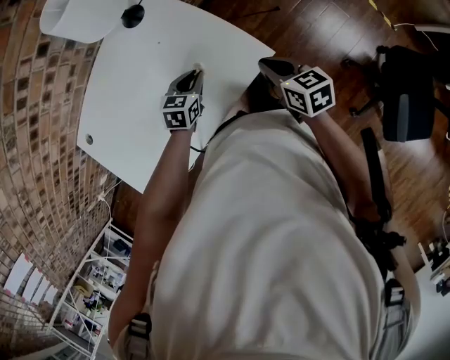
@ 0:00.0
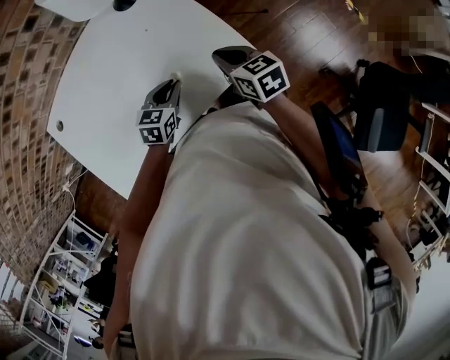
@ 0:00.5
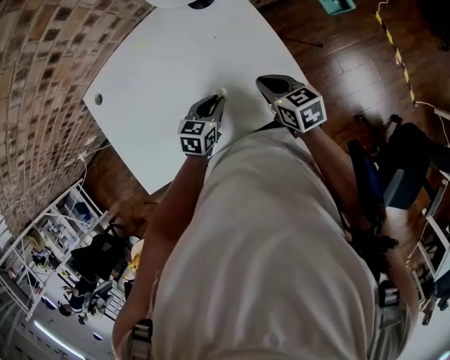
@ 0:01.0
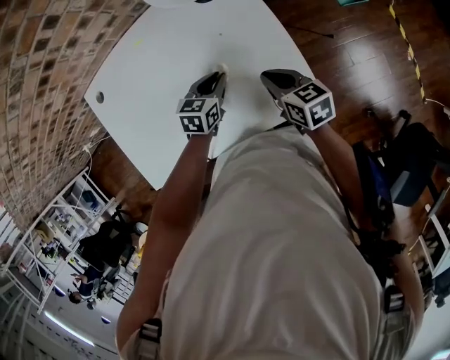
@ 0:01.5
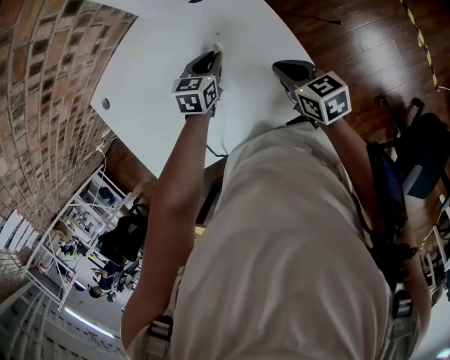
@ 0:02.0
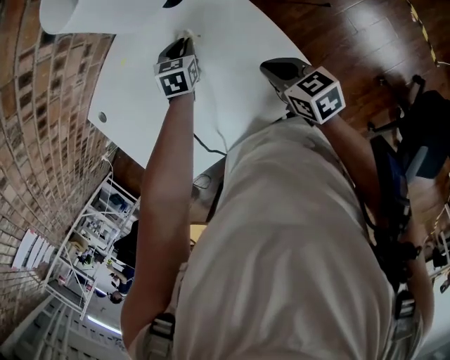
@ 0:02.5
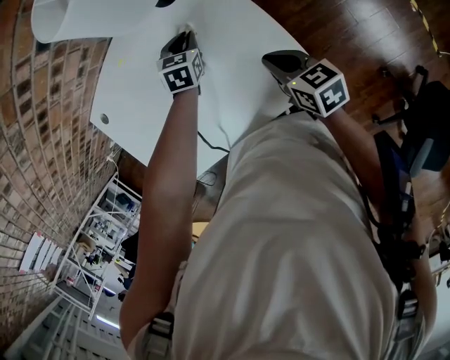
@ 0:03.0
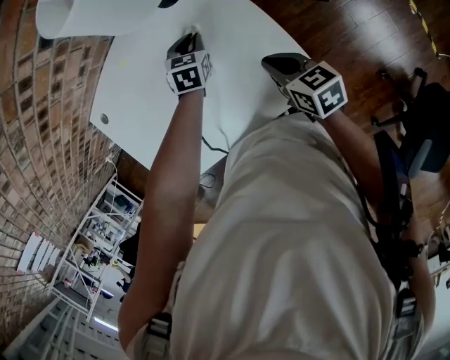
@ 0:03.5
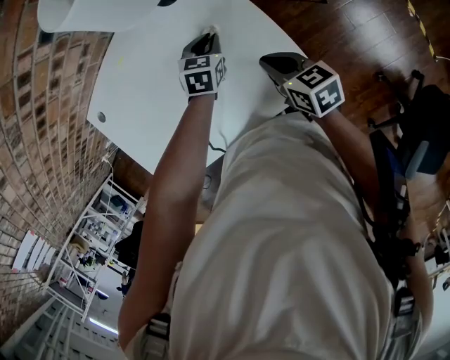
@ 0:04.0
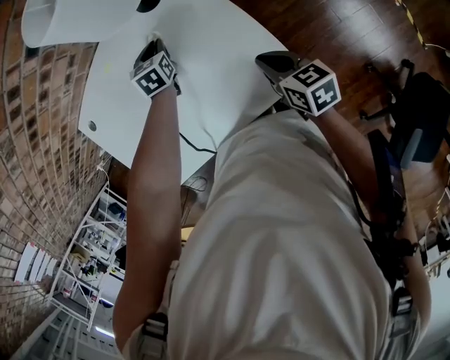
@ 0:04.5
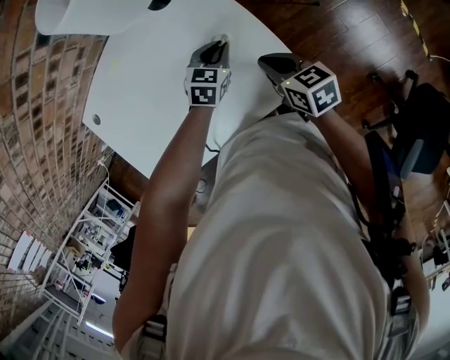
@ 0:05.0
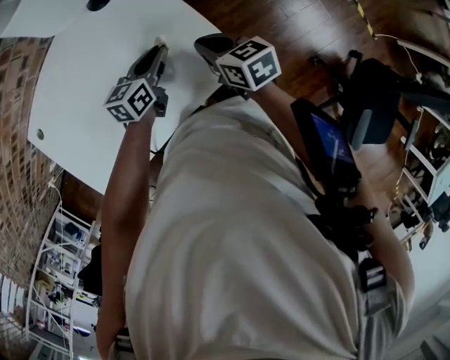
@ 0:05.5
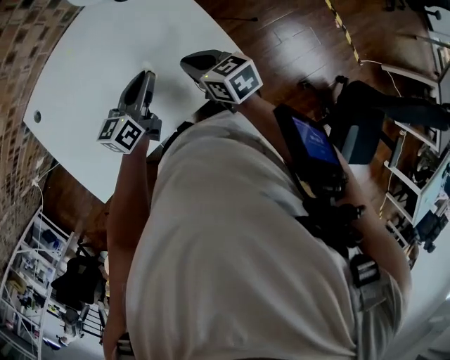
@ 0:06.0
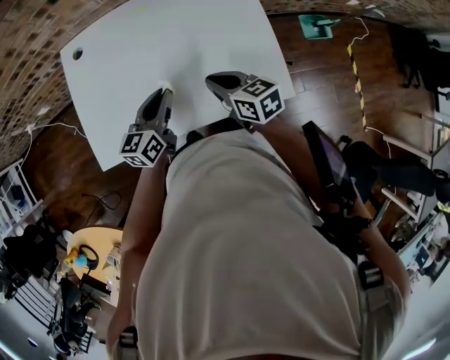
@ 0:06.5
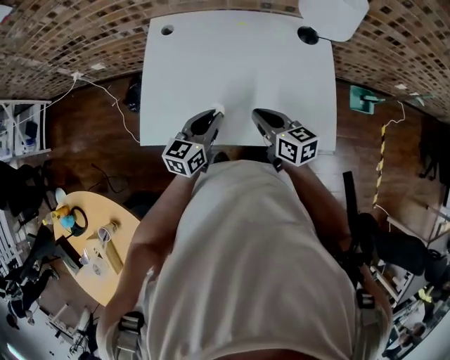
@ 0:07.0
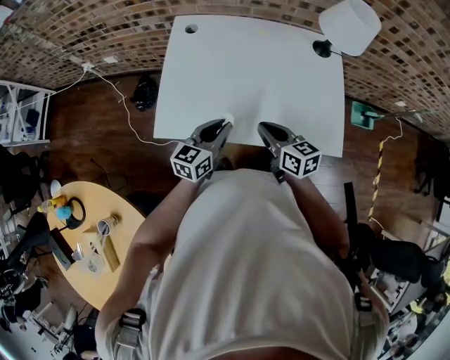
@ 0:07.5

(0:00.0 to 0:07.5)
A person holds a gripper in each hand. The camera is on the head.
0:00.0 - 0:02.0: Both grippers move forward and to the left, roughly 15 cm. The right gripper swivels approximately 20 degrees. Meanwhile the left gripper swivels approximately 20 degrees.
0:02.0 - 0:04.0: The left gripper travels to the right by roughly 5 cm.
0:04.0 - 0:05.5: The left gripper travels backward by about 10 cm, and turns by roughly 30 degrees.
0:05.5 - 0:07.5: The left gripper shifts by some 40 cm, and rotates some 40 degrees. The right gripper changes place by approximately 40 cm, and rotates some 30 degrees.

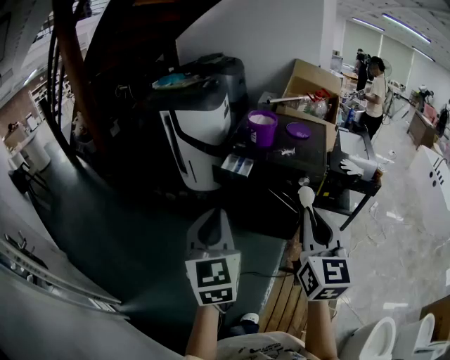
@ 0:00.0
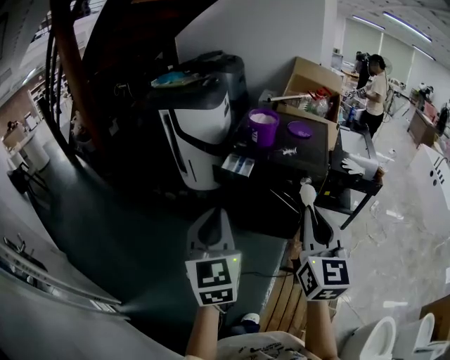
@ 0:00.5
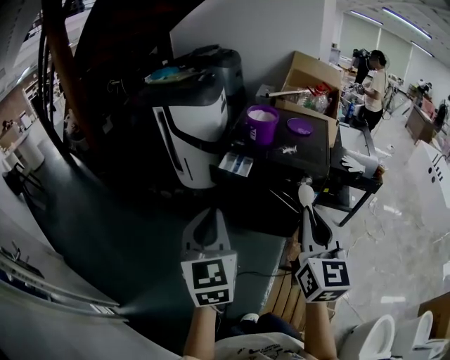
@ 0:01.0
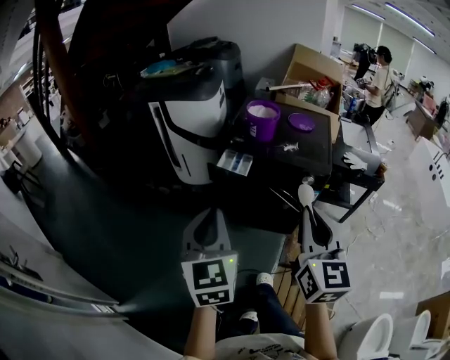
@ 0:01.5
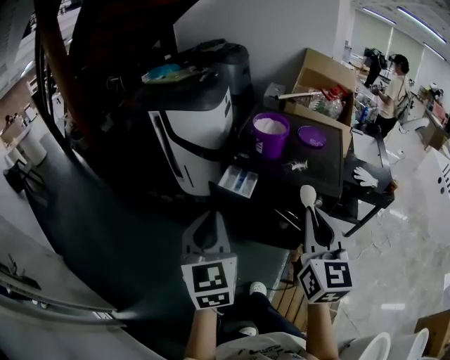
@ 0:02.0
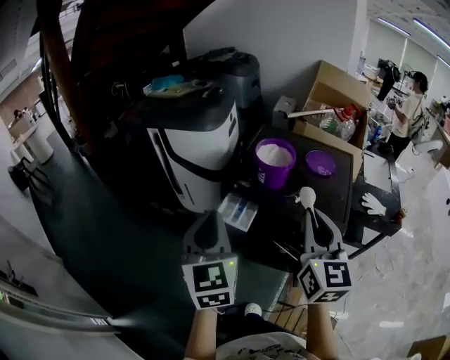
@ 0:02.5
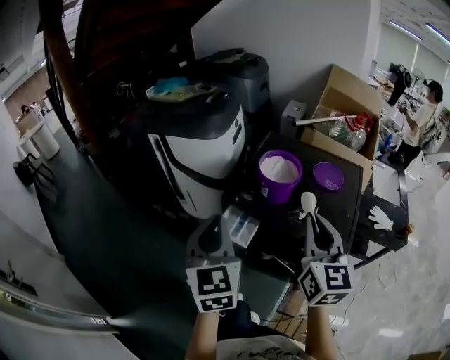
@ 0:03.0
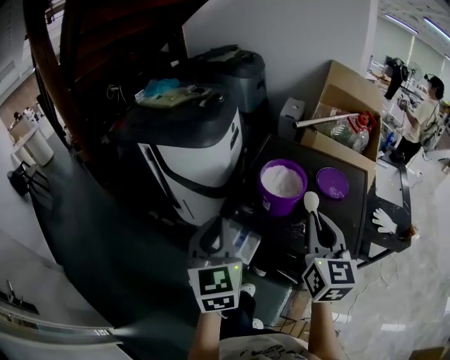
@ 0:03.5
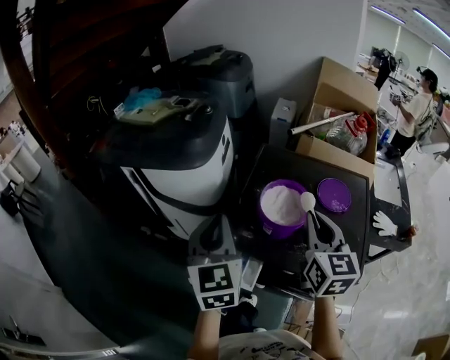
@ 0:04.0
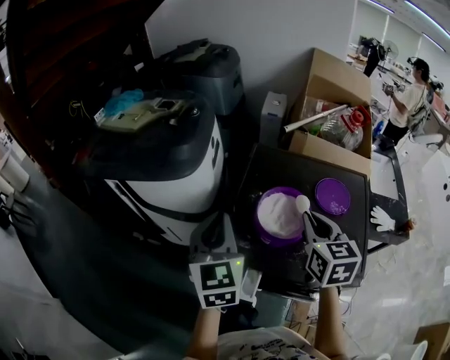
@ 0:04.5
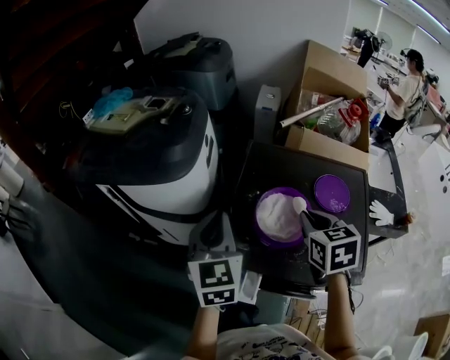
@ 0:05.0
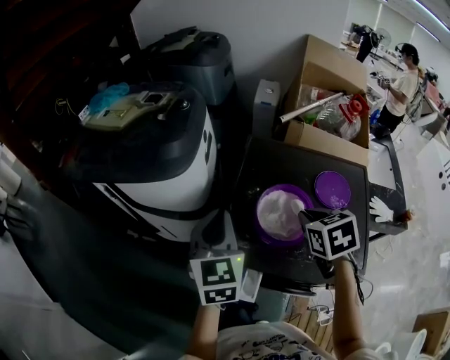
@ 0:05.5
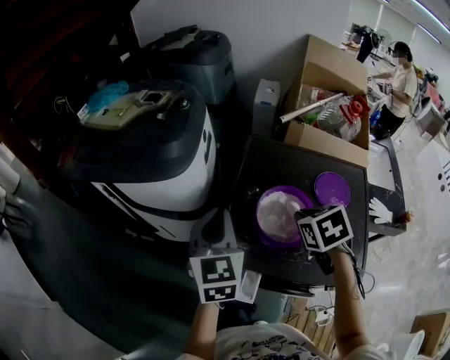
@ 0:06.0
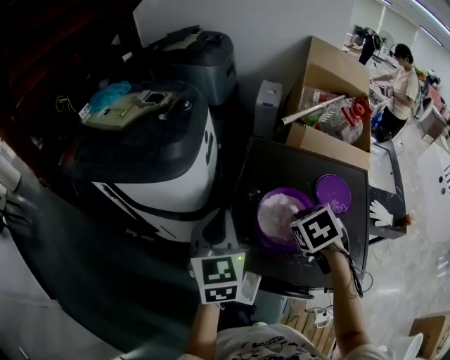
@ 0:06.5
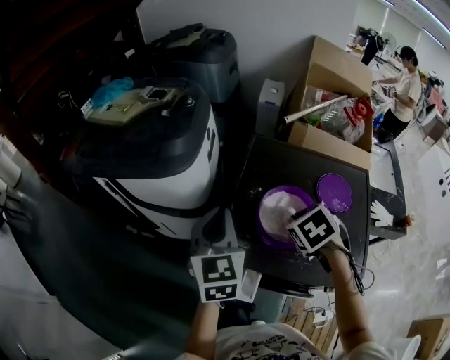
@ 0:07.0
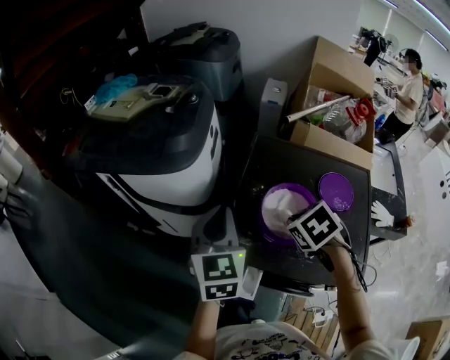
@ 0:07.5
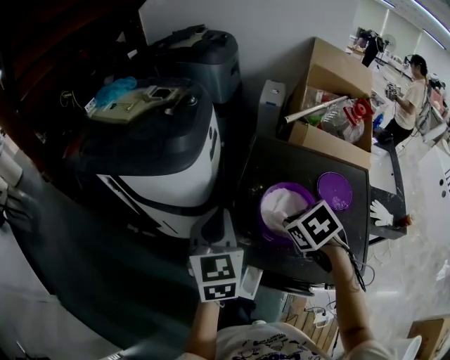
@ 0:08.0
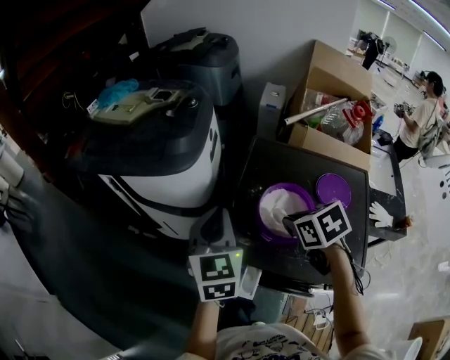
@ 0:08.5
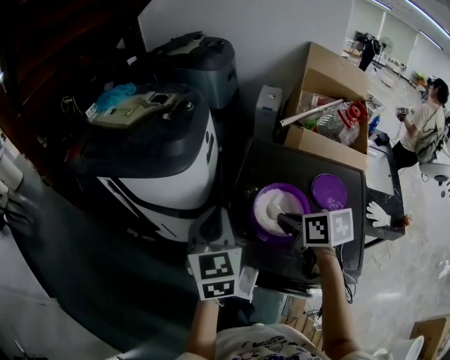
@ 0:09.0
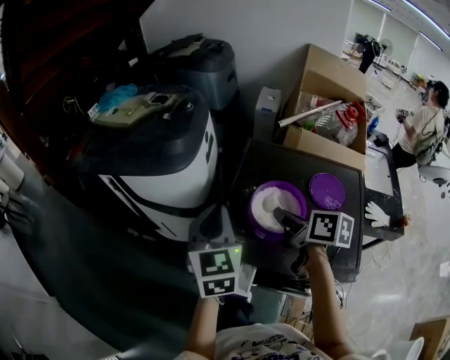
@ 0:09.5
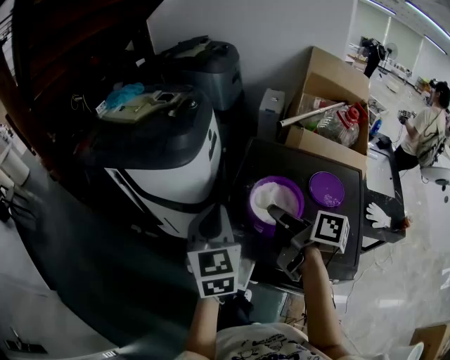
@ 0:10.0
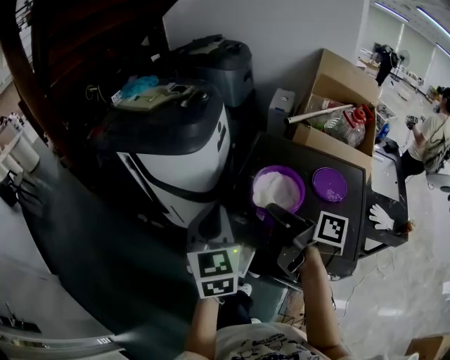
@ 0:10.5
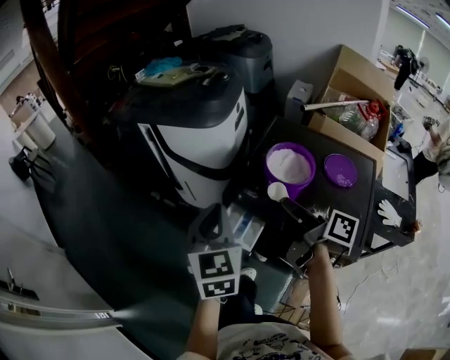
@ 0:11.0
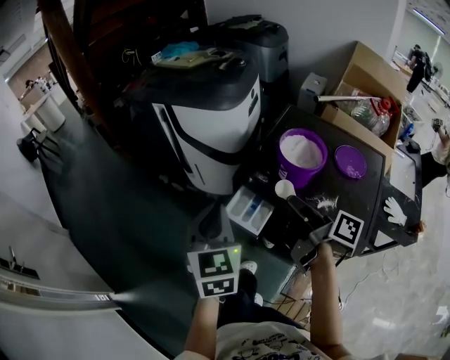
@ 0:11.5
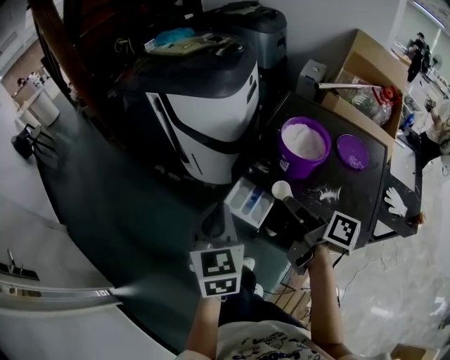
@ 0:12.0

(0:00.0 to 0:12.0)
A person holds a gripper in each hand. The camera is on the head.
0:00.0 - 0:02.0: Both grippers move forward, roughly 20 cm.
0:02.0 - 0:04.0: Both grippers travel together forward, roughly 40 cm.
0:04.0 - 0:06.0: The right gripper moves downward and forward, approximately 15 cm, and tilts its fingers approximately 50 degrees downward; the left gripper shifts some 10 cm forward and downward.
0:06.0 - 0:08.0: The right gripper shifts by roughly 5 cm.
0:08.0 - 0:10.0: The left gripper changes place by some 5 cm. Meanwhile the right gripper goes roughly 10 cm upward, and tips its fingers upward by roughly 50 degrees.
0:10.0 - 0:12.0: The left gripper is displaced backward and to the left by some 20 cm; the right gripper goes roughly 15 cm backward, to the left and downward.

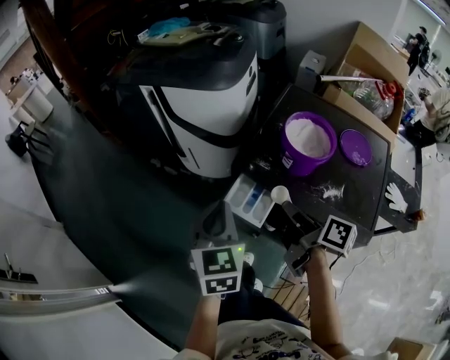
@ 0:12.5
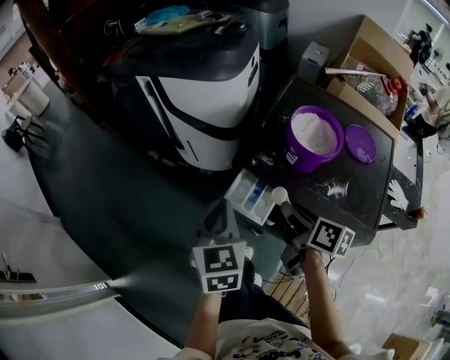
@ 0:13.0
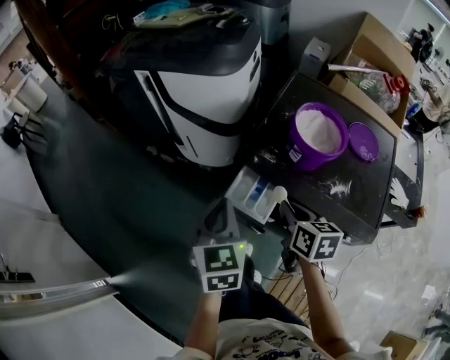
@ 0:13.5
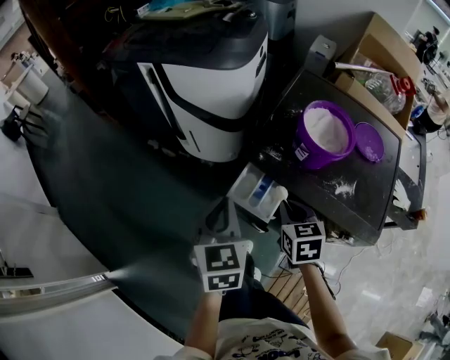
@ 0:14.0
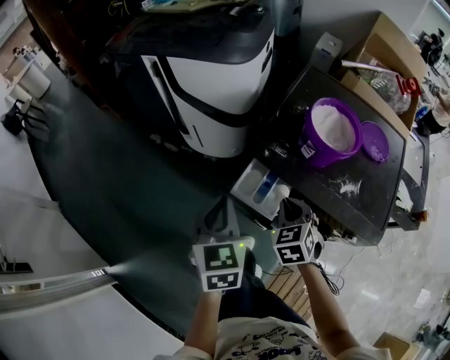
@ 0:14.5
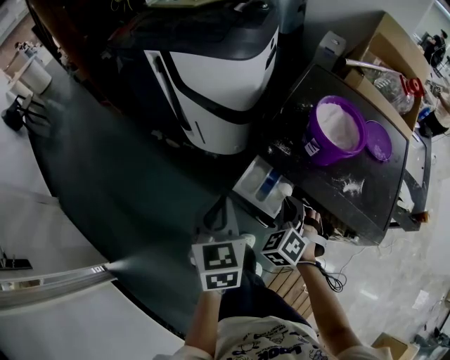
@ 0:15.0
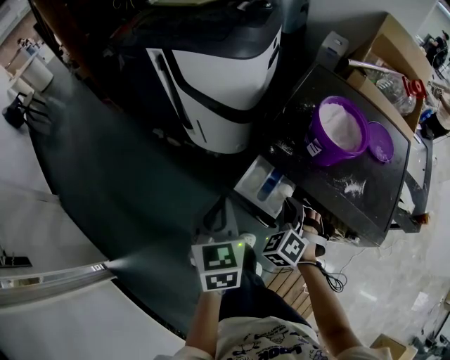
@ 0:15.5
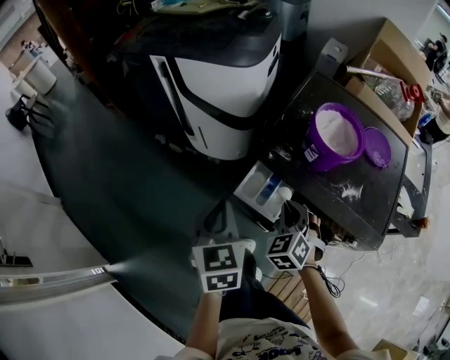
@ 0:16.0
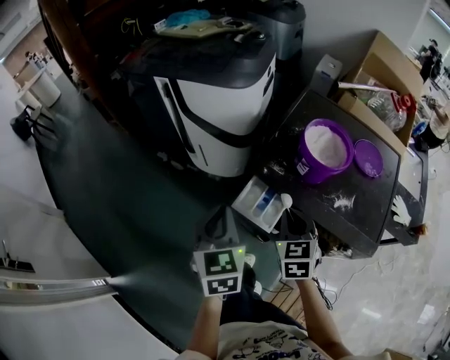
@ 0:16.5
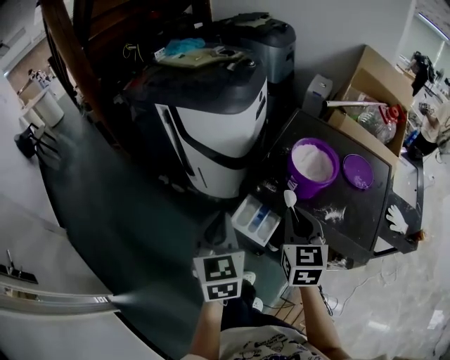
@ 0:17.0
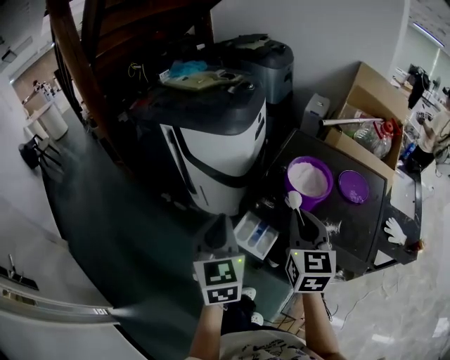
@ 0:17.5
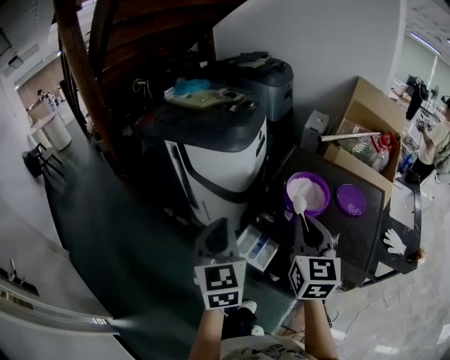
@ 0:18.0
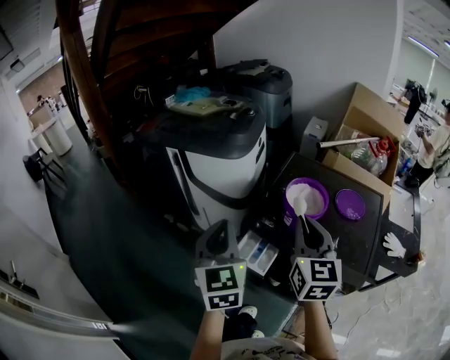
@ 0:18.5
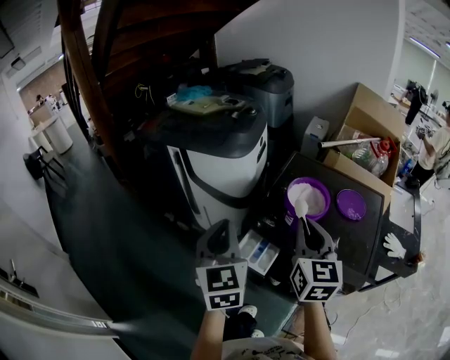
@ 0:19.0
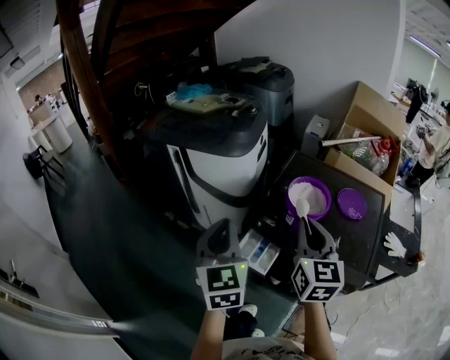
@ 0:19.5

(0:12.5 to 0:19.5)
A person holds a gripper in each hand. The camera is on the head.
0:12.5 - 0:14.5: The left gripper goes approximately 5 cm downward, while the right gripper heads downward, covering about 10 cm, and twists some 80 degrees counterclockwise, seen from behind.
0:16.0 - 0:17.5: The left gripper goes about 15 cm upward. The right gripper heads upward, covering roughly 25 cm, and rotates roughly 50 degrees.
0:17.5 - 0:19.5: The grippers move only a little.
